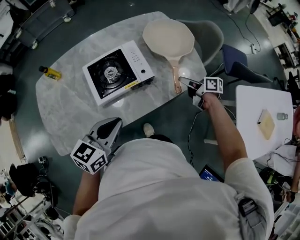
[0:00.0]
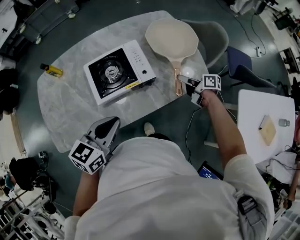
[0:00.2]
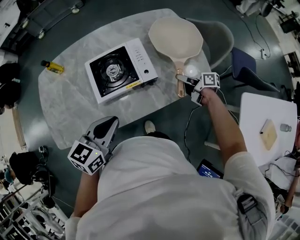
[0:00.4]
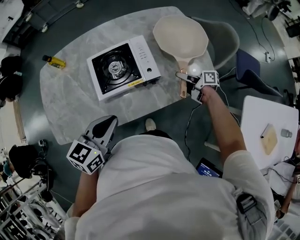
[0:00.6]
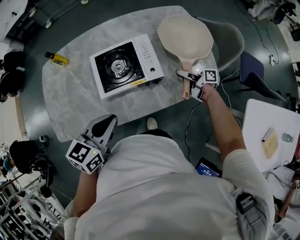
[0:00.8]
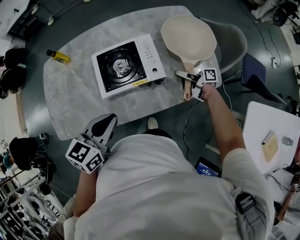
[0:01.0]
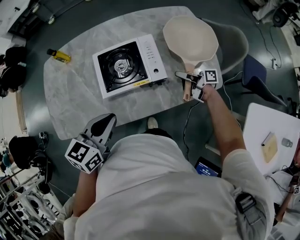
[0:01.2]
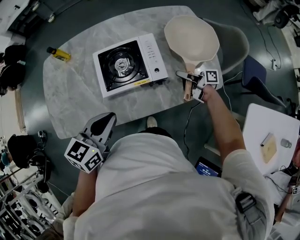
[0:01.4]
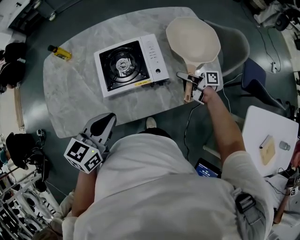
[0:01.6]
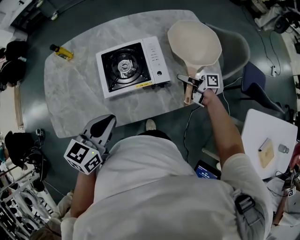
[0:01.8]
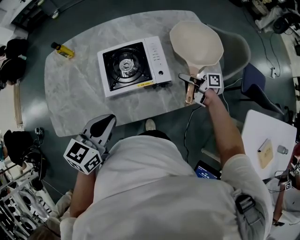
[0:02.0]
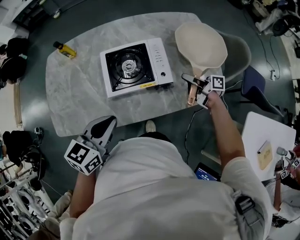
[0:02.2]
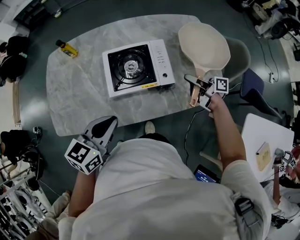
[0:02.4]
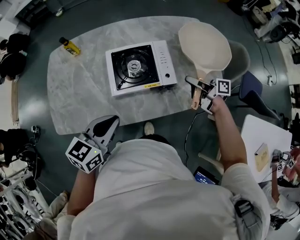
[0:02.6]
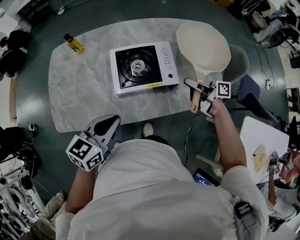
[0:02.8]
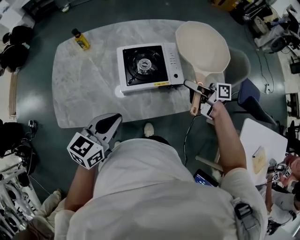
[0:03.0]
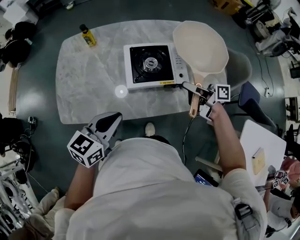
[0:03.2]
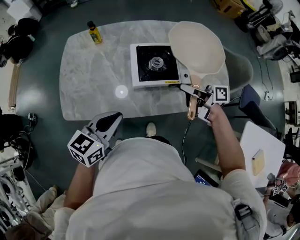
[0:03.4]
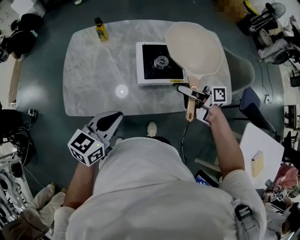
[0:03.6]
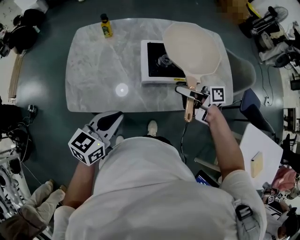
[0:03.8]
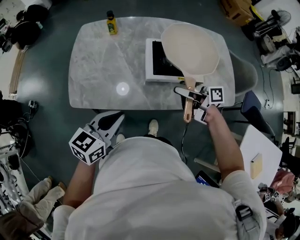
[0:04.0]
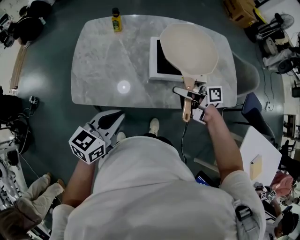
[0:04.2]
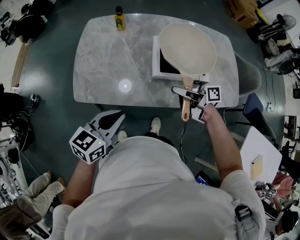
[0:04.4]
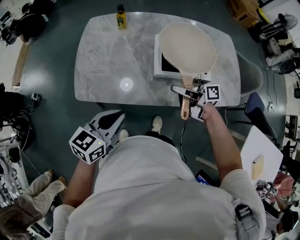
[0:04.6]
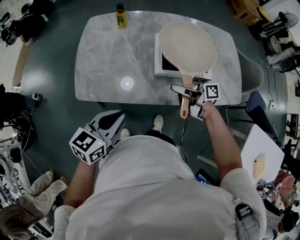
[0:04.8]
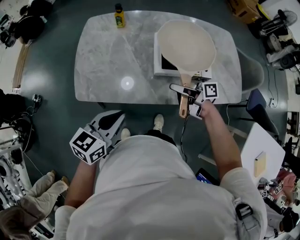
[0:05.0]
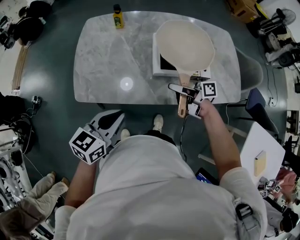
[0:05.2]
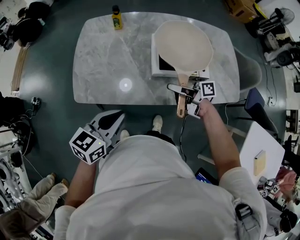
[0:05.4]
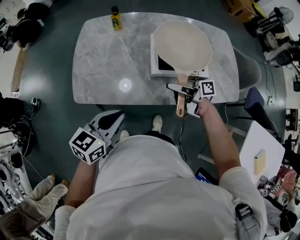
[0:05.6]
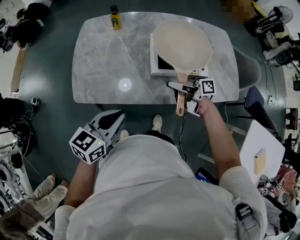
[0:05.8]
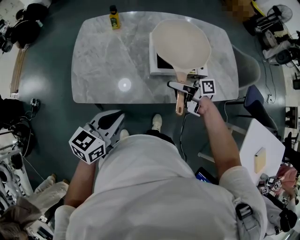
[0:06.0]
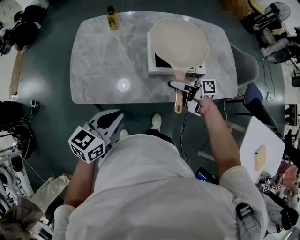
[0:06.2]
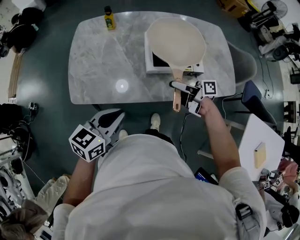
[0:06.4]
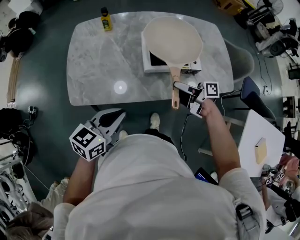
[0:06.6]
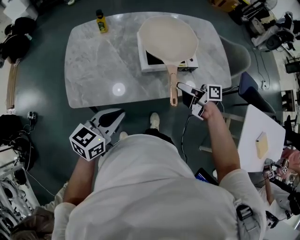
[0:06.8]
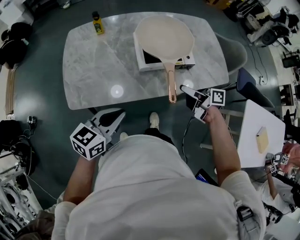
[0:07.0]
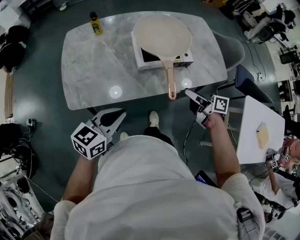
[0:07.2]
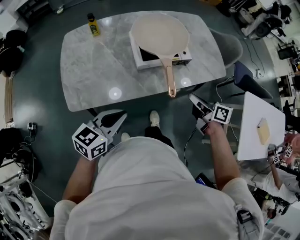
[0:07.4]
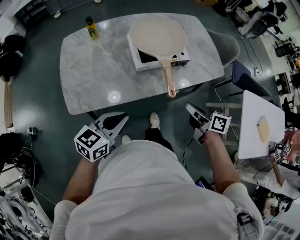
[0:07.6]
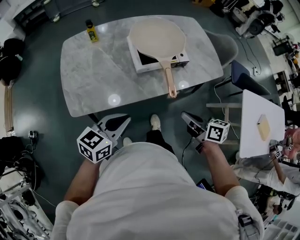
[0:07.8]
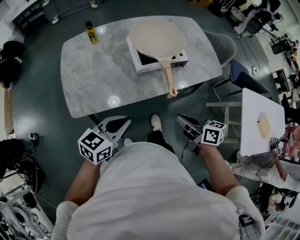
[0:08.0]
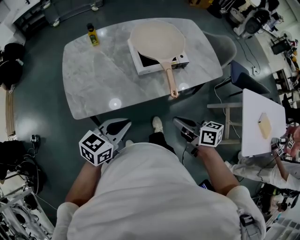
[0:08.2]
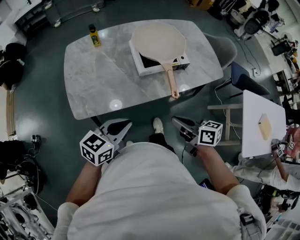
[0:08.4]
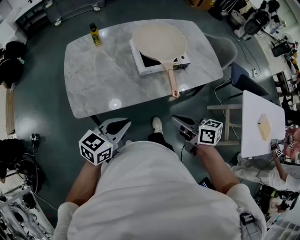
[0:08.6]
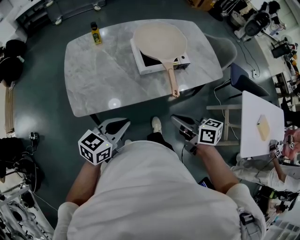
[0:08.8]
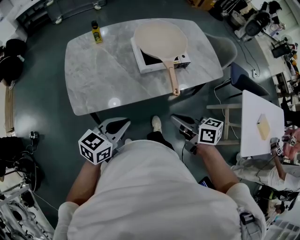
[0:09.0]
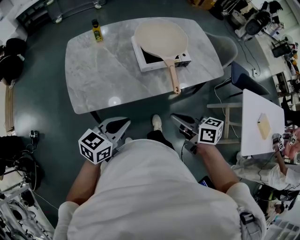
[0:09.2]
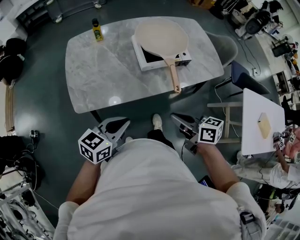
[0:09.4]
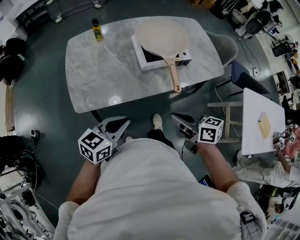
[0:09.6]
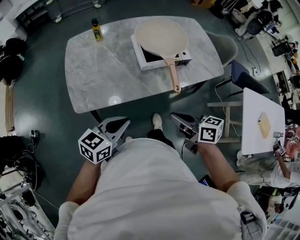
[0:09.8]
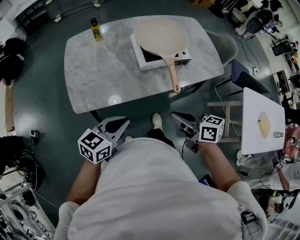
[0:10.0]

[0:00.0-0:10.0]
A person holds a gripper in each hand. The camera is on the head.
0.0 to 1.4 s: The right gripper travels forward and to the left by roughly 10 cm, changes its angle by some 30 degrees, and closes up.
1.4 to 2.8 s: The right gripper travels upward and to the left by roughly 15 cm; the left gripper shifts approximately 5 cm to the left.
2.8 to 4.2 s: The right gripper shifts some 25 cm to the left, while the left gripper heads to the left, covering approximately 15 cm.
4.2 to 5.8 s: The right gripper opens up.
5.8 to 7.2 s: The right gripper shifts some 15 cm to the right and backward, changes its angle by approximately 30 degrees, and opens and closes again.
7.2 to 8.6 s: The right gripper is displaced backward and to the left by roughly 15 cm, and closes up.
8.6 to 10.0 s: The grippers move only a little.

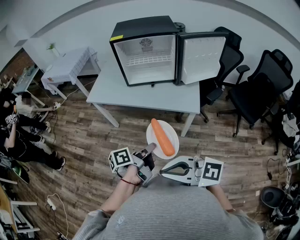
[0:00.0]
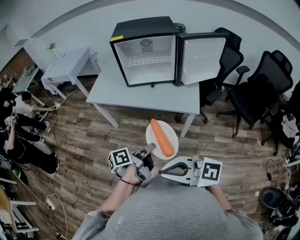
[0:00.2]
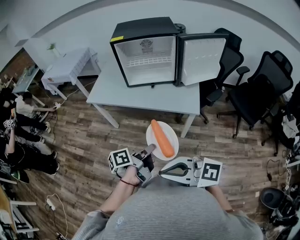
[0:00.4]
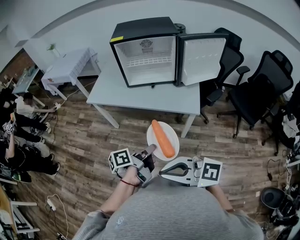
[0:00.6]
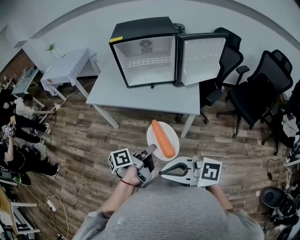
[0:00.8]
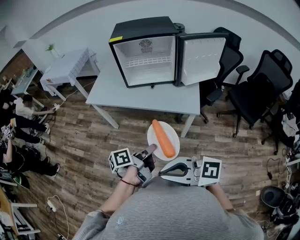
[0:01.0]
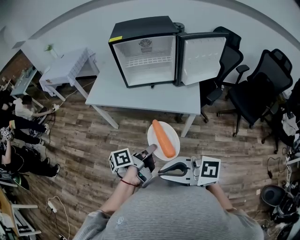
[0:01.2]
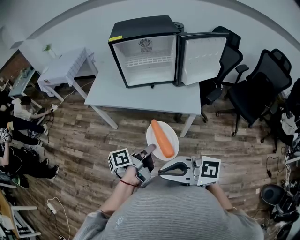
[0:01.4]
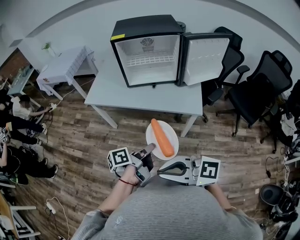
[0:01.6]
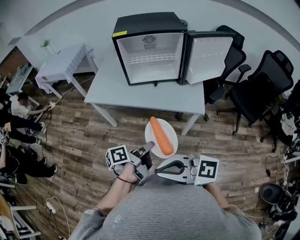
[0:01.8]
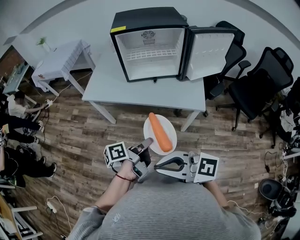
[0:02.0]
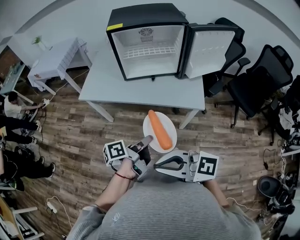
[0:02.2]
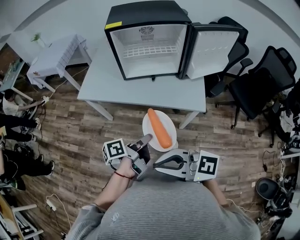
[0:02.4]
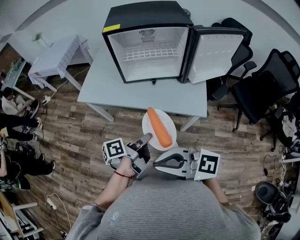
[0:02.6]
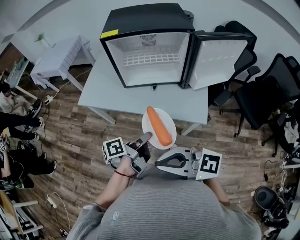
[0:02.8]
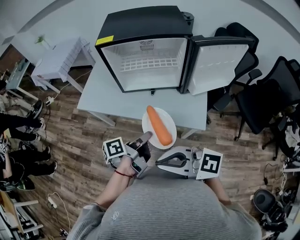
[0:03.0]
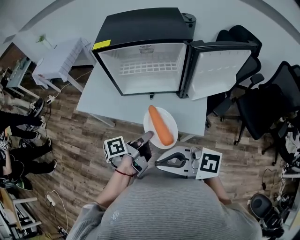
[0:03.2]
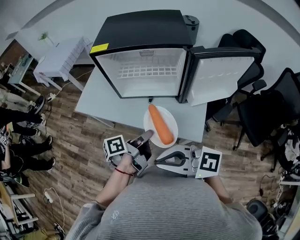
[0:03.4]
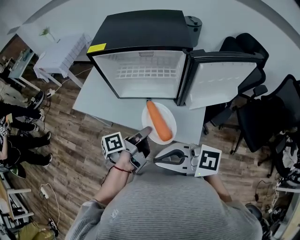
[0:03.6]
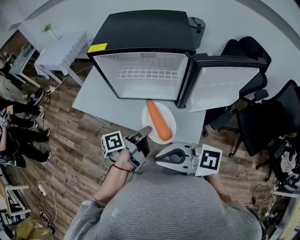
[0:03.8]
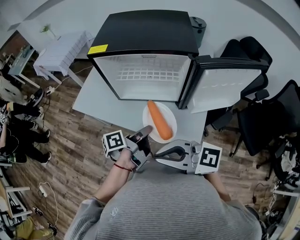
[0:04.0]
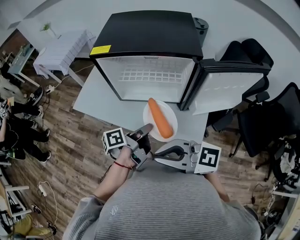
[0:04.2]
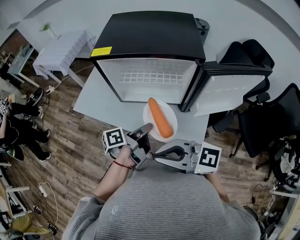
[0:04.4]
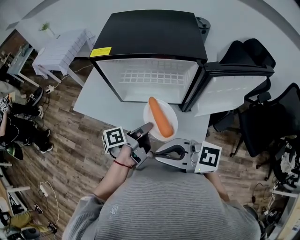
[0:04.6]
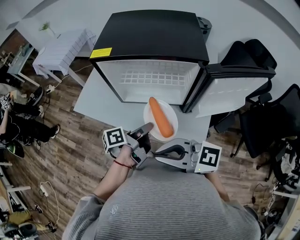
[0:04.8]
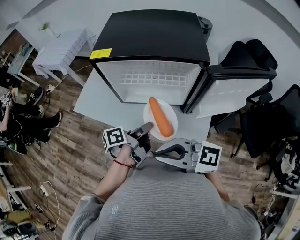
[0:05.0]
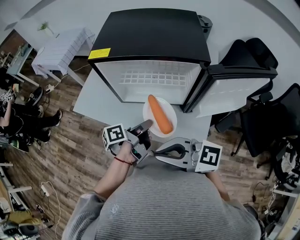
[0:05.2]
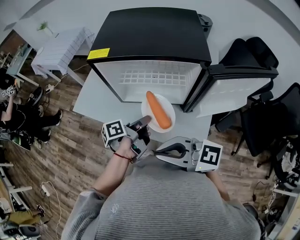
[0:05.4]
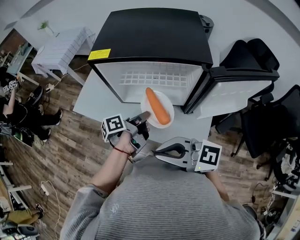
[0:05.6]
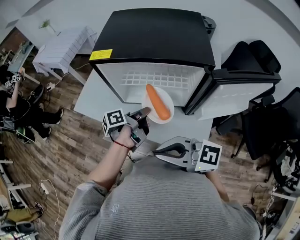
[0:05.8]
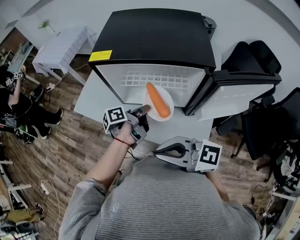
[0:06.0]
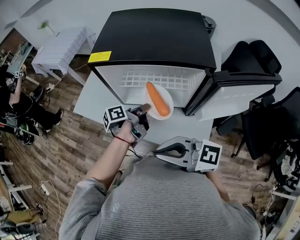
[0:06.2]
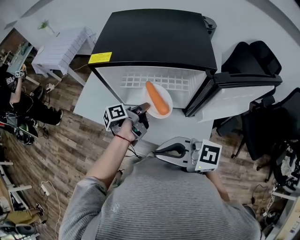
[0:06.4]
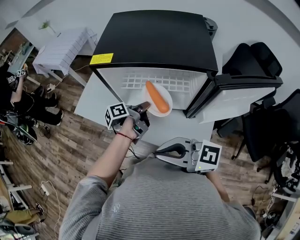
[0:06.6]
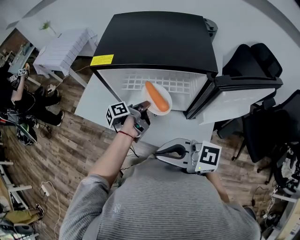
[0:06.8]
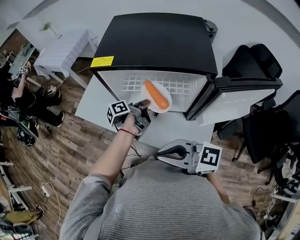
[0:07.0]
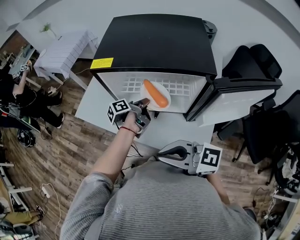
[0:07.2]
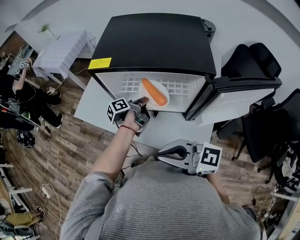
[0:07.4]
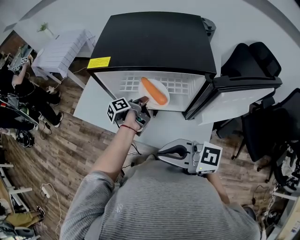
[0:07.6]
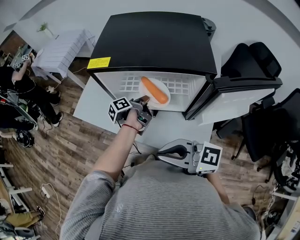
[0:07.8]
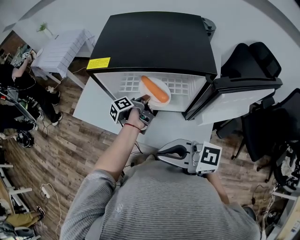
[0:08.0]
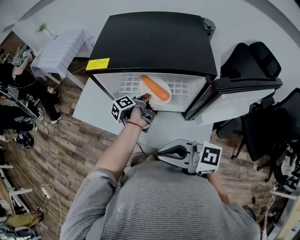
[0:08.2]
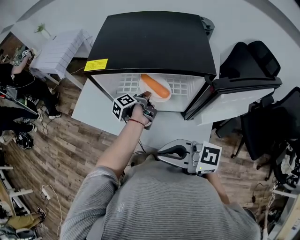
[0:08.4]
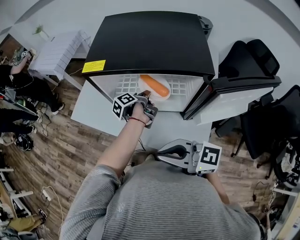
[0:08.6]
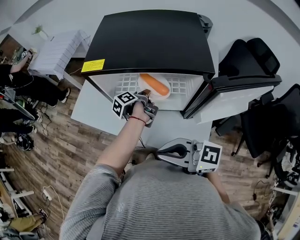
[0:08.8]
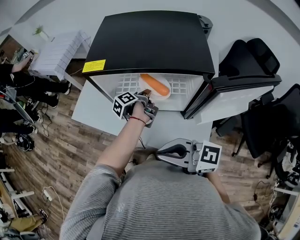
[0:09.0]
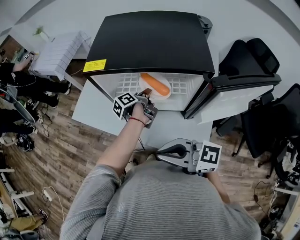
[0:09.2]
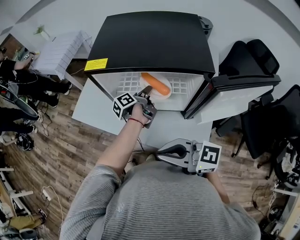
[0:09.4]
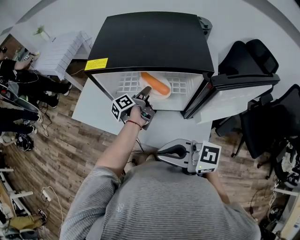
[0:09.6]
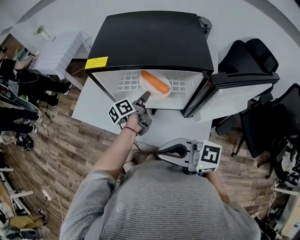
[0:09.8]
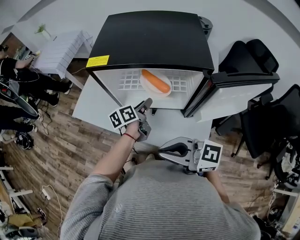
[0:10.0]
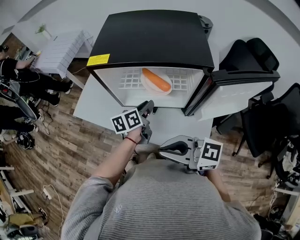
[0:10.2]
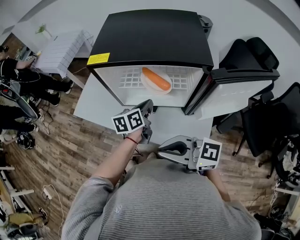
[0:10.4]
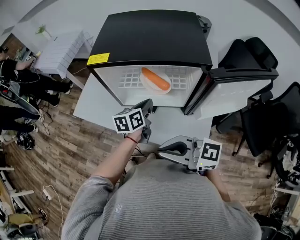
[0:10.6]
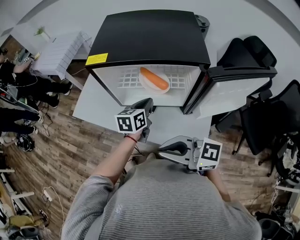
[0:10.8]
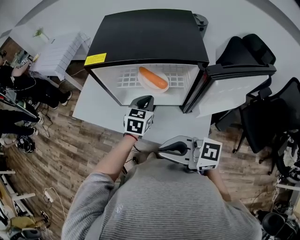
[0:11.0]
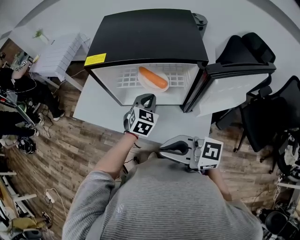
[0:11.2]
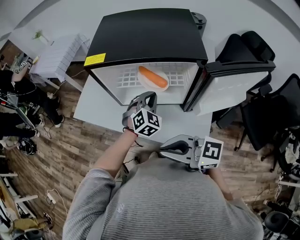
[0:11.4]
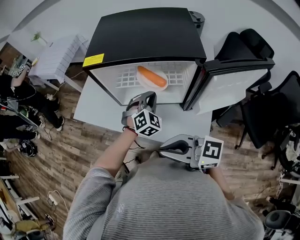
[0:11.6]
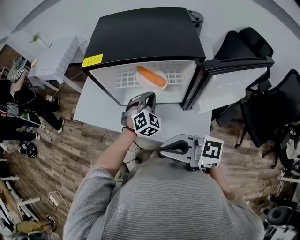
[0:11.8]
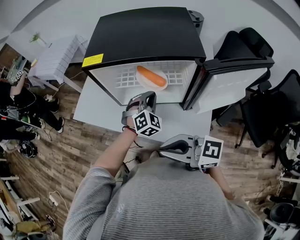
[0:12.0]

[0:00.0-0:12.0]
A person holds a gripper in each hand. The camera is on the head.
0.0 to 1.6 s: The right gripper moves roughly 5 cm.
1.6 to 3.0 s: The left gripper changes place by roughly 20 cm. Meanwhile the right gripper ends up roughly 20 cm from where it was.
3.0 to 4.4 s: The right gripper shifts by roughly 15 cm, while the left gripper ends up approximately 15 cm from where it was.
4.4 to 6.0 s: The right gripper moves approximately 5 cm. The left gripper moves approximately 15 cm.
6.0 to 7.6 s: The left gripper goes some 10 cm forward.
7.6 to 9.0 s: The grippers stay close to where they were, moving slightly.
9.0 to 10.4 s: The left gripper travels backward by some 10 cm, twists roughly 50 degrees clockwise, seen from behind, and opens, then closes once more.
10.4 to 12.0 s: The left gripper twists approximately 90 degrees clockwise, seen from behind.

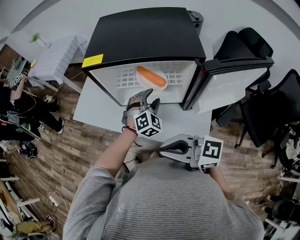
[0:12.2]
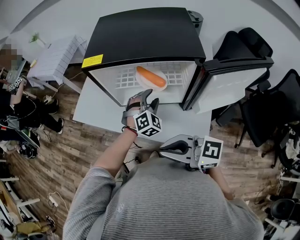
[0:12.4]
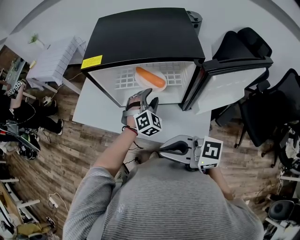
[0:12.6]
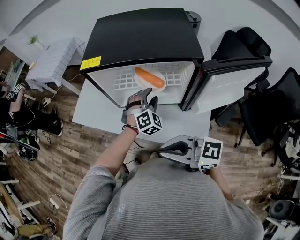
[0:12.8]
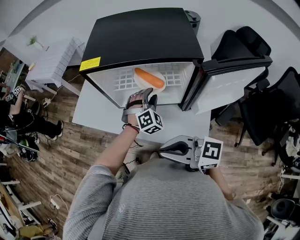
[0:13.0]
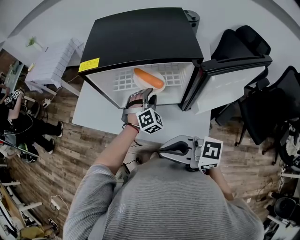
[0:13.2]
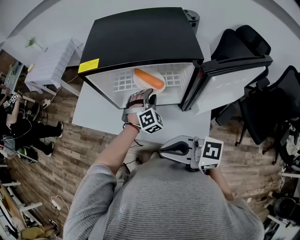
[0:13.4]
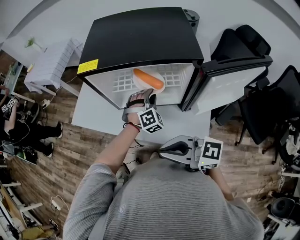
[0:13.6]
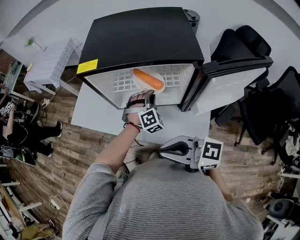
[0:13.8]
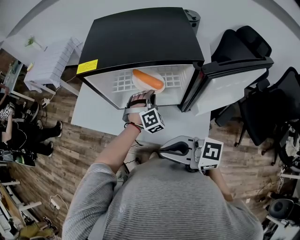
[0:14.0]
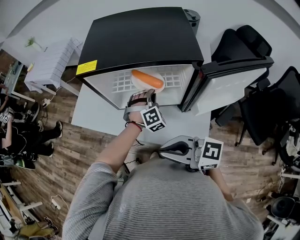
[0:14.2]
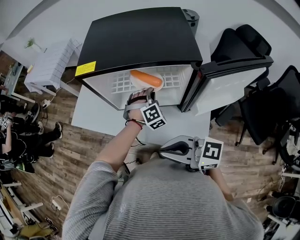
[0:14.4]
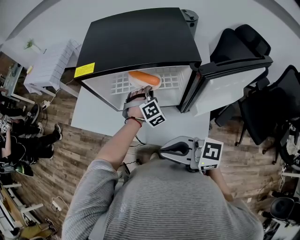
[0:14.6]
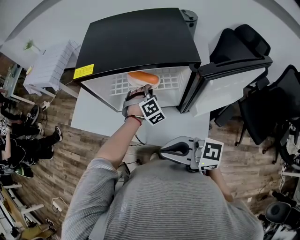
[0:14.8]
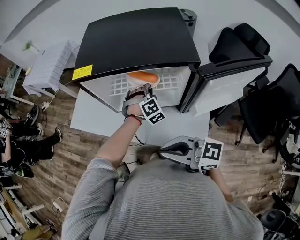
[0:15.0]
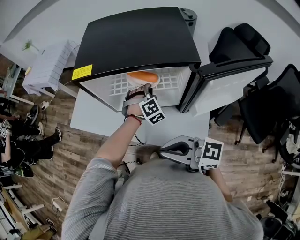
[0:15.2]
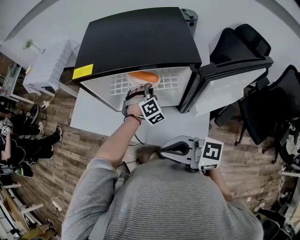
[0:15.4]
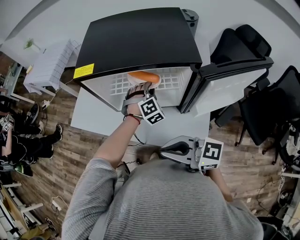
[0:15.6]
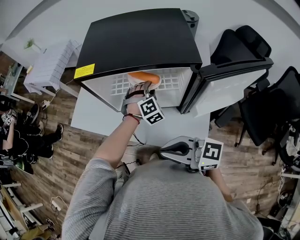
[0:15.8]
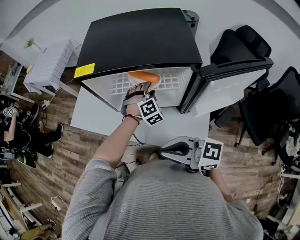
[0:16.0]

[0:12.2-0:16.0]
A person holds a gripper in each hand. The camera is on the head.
12.2 to 13.4 s: There are only small adjustments of the grippers.
13.4 to 14.8 s: The grippers make only small movements.
14.8 to 16.0 s: The left gripper opens.
